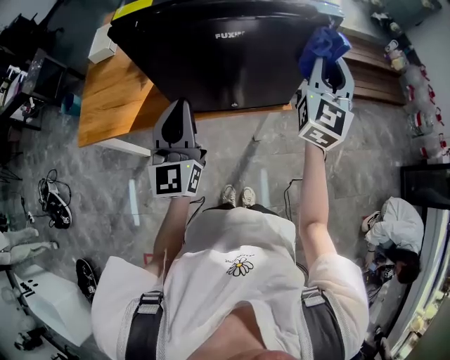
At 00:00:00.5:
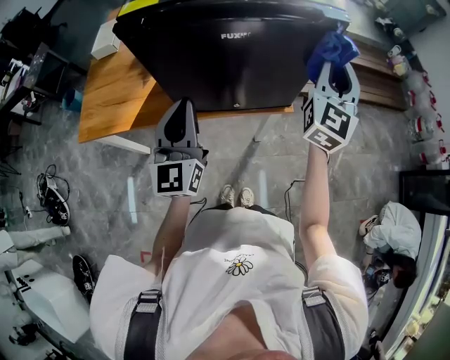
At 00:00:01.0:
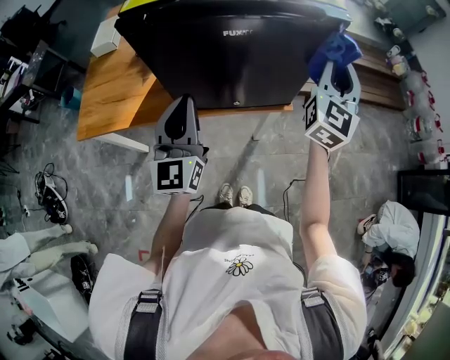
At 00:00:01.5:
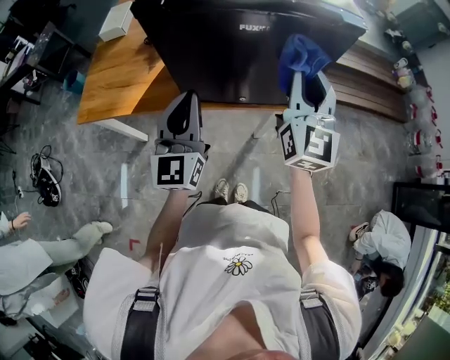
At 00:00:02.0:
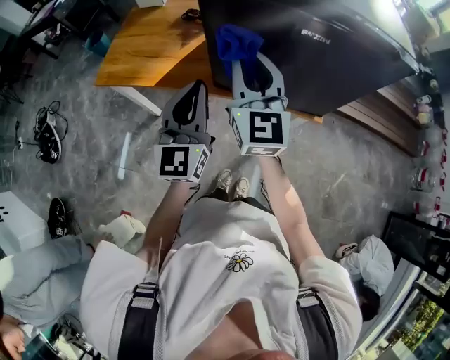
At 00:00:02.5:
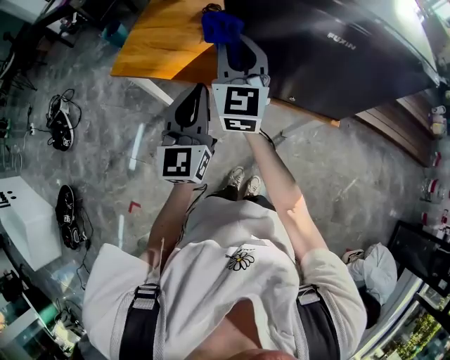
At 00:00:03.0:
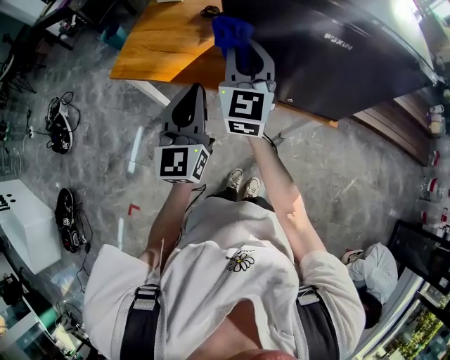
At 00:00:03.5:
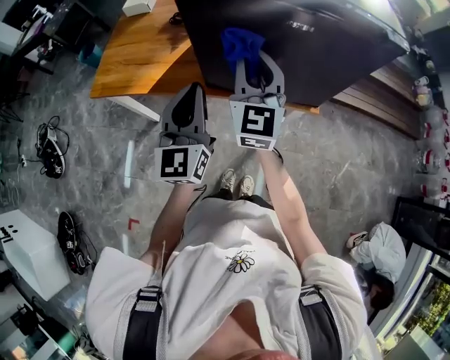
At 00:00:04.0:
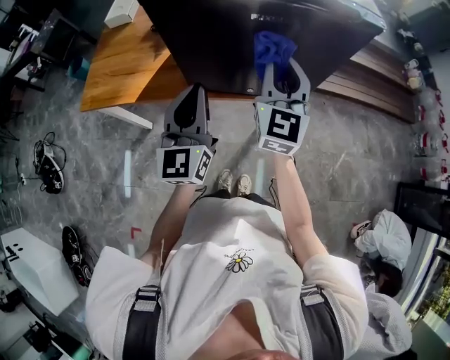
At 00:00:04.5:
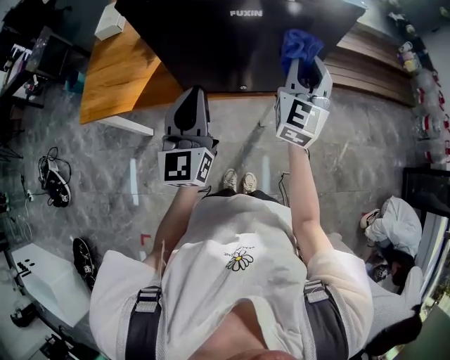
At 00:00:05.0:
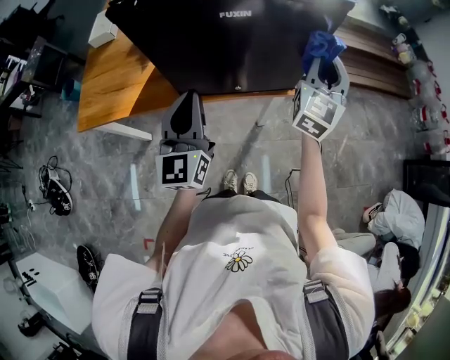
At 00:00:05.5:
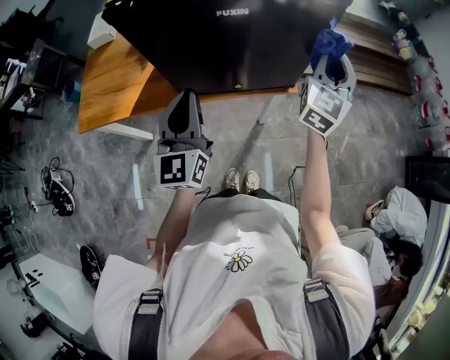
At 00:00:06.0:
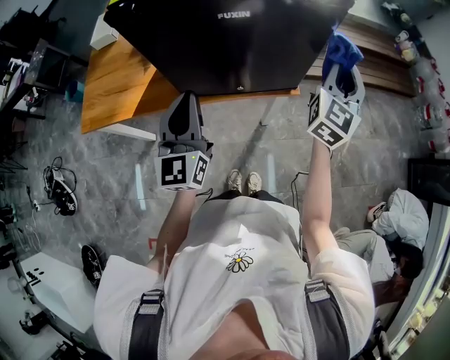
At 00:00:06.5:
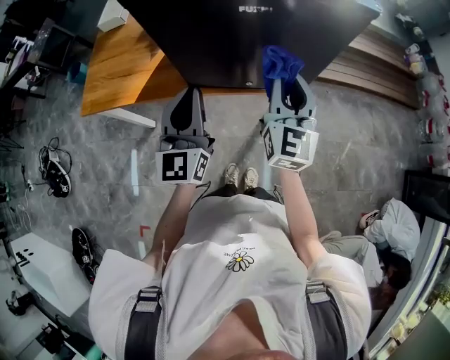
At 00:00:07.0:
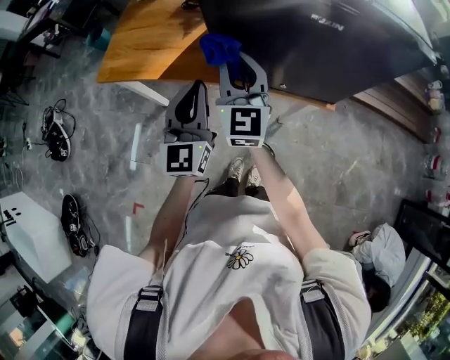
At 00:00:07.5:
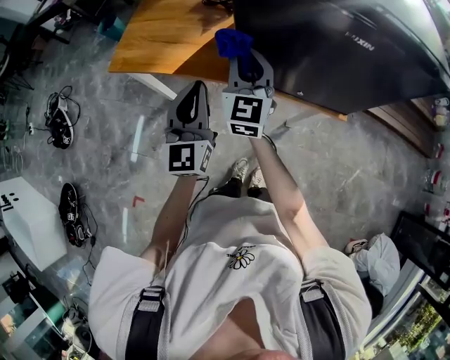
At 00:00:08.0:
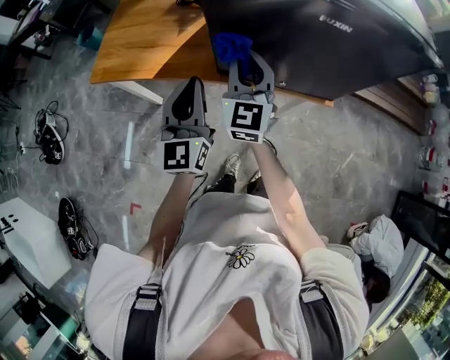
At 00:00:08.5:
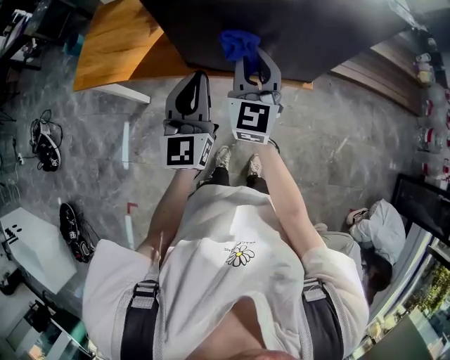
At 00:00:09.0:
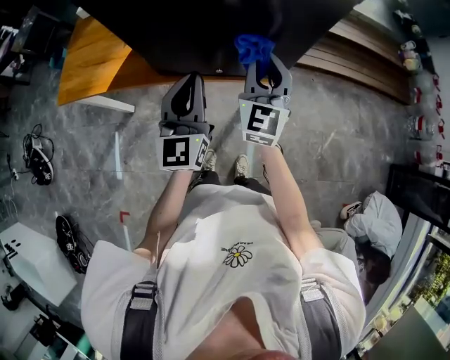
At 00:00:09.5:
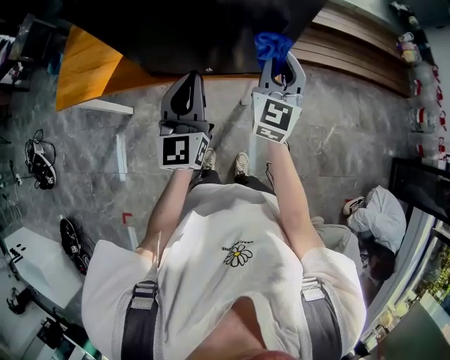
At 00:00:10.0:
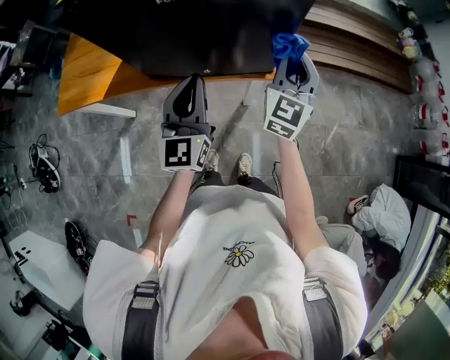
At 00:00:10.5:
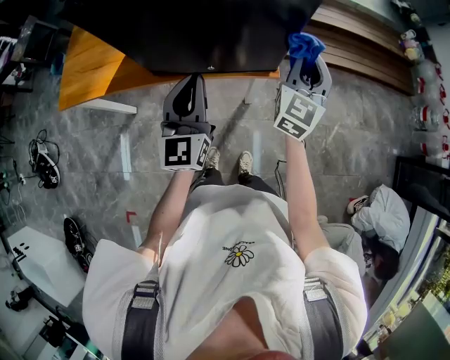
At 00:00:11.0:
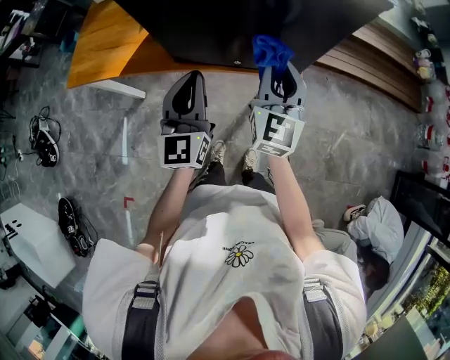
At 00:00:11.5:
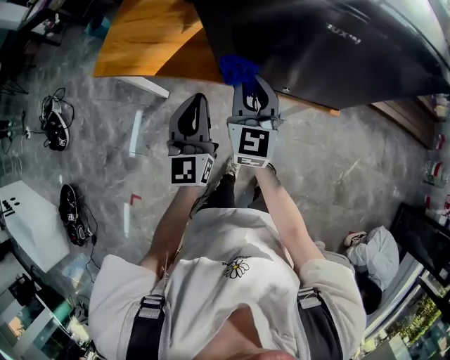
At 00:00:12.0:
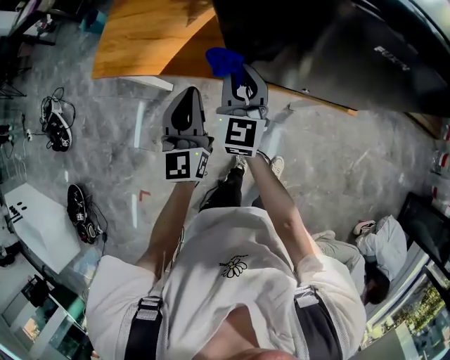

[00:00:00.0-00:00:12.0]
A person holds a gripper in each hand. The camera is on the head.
00:00:00.0 to 00:00:02.0: The left gripper changes place by about 10 cm. Meanwhile the right gripper changes place by roughly 30 cm, and rotates approximately 40 degrees.
00:00:02.0 to 00:00:04.0: The right gripper moves to the right, approximately 15 cm, and swivels some 20 degrees. Meanwhile the left gripper travels to the right by about 5 cm.
00:00:04.0 to 00:00:06.0: The right gripper shifts some 20 cm to the right, and swivels roughly 30 degrees.
00:00:06.0 to 00:00:08.0: The right gripper ends up approximately 40 cm from where it was, and rotates roughly 40 degrees. The left gripper shifts by about 10 cm.
00:00:08.0 to 00:00:10.0: The right gripper goes about 35 cm to the right, and changes its angle by some 30 degrees. Meanwhile the left gripper heads to the right, covering approximately 25 cm.
00:00:10.0 to 00:00:12.0: The grippers both shift to the left by some 35 cm. The right gripper swivels some 30 degrees.

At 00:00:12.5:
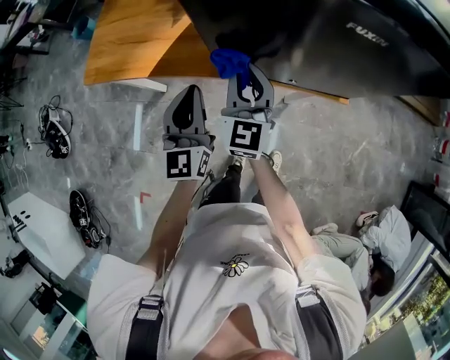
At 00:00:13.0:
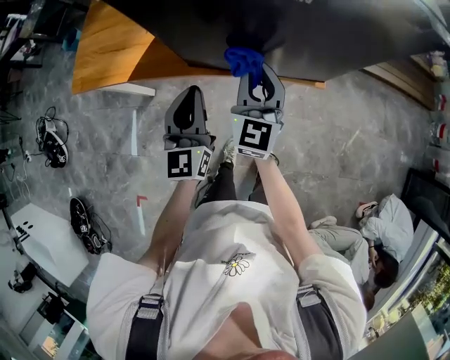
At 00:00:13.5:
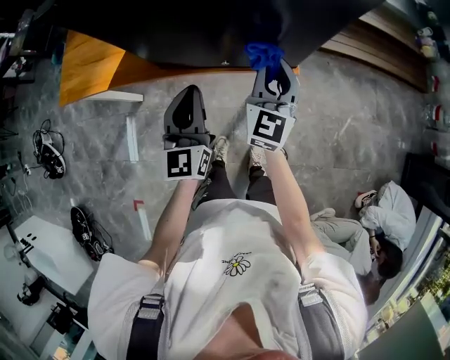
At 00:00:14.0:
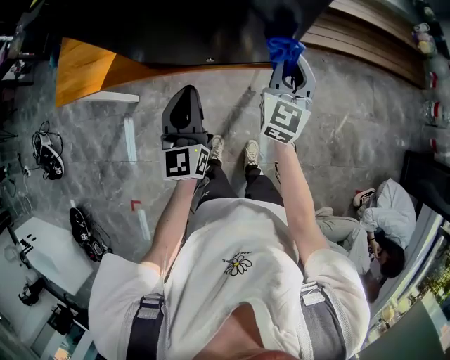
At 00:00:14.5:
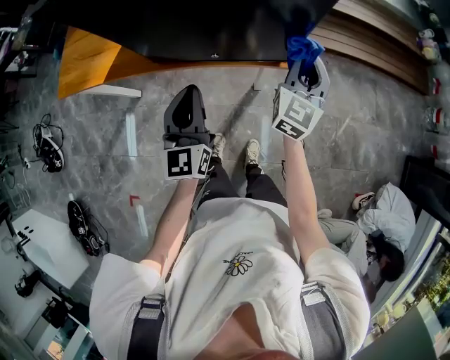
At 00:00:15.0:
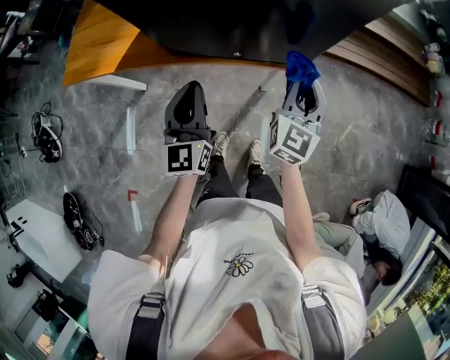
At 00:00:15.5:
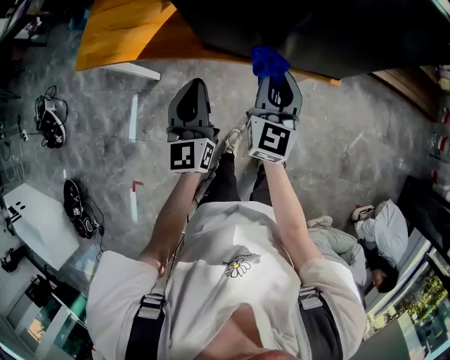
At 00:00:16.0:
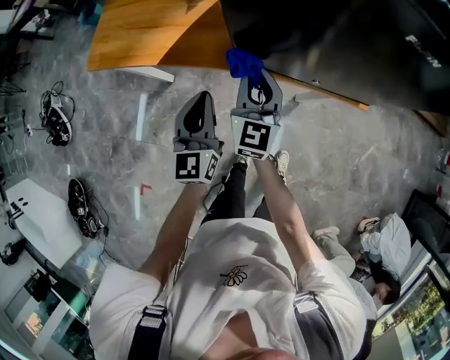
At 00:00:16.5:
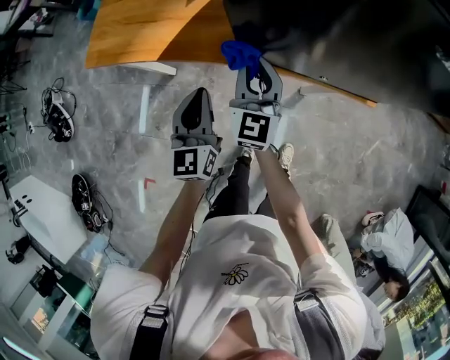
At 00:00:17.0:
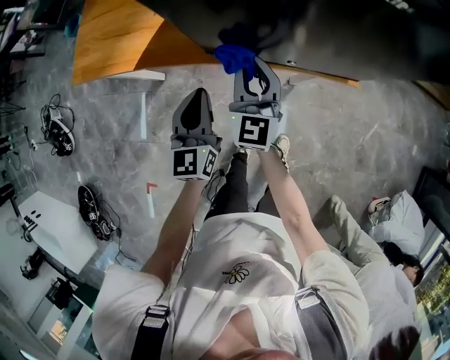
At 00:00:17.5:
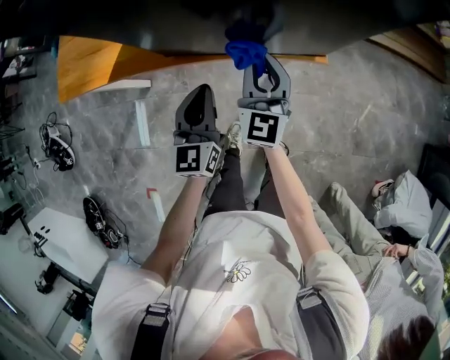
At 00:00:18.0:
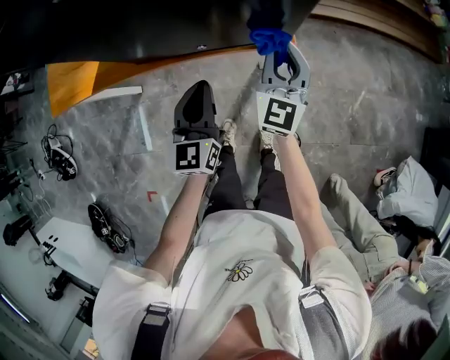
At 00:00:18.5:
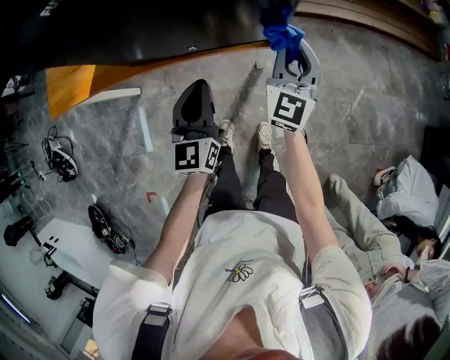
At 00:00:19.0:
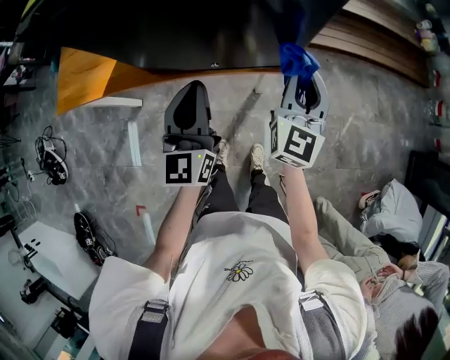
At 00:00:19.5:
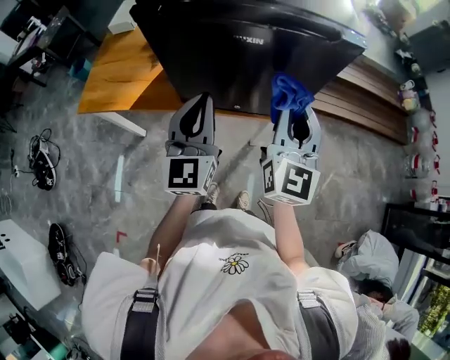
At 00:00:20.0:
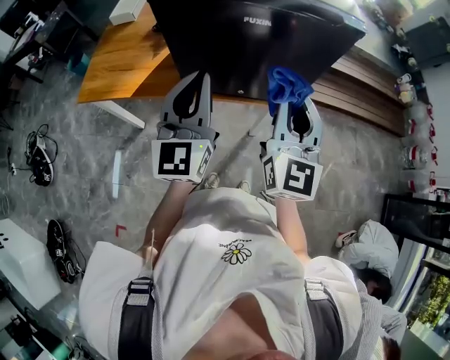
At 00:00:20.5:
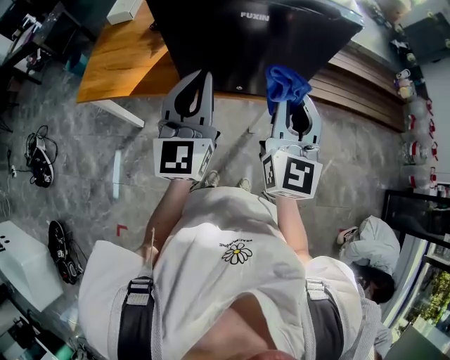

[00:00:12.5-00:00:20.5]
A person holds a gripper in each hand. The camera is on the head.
00:00:12.5 to 00:00:14.5: The left gripper shifts approximately 20 cm to the right; the right gripper travels to the right by about 35 cm, and changes its angle by some 30 degrees.
00:00:14.5 to 00:00:16.5: The right gripper shifts about 40 cm to the left, and turns by about 30 degrees, while the left gripper goes approximately 25 cm to the left.
00:00:16.5 to 00:00:18.5: Both grippers move to the right, about 35 cm. The right gripper swivels some 20 degrees.
00:00:18.5 to 00:00:20.5: The left gripper moves upward, roughly 30 cm, and changes its angle by approximately 20 degrees. The right gripper moves upward, backward and to the left, approximately 35 cm.

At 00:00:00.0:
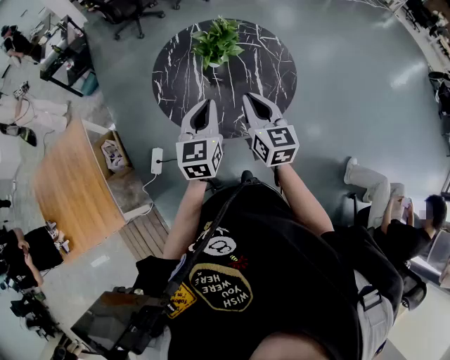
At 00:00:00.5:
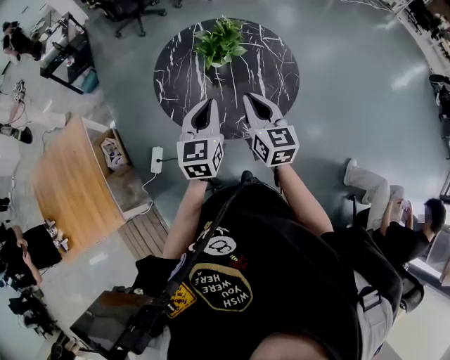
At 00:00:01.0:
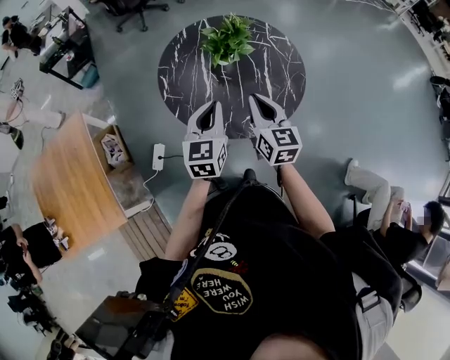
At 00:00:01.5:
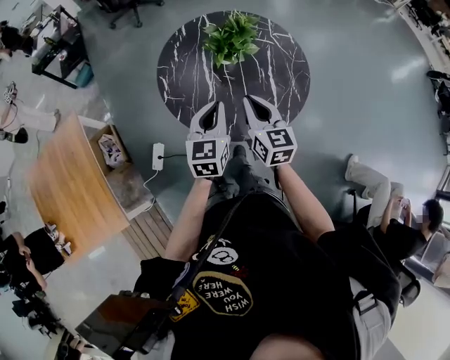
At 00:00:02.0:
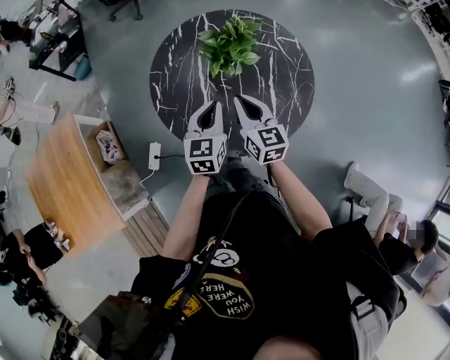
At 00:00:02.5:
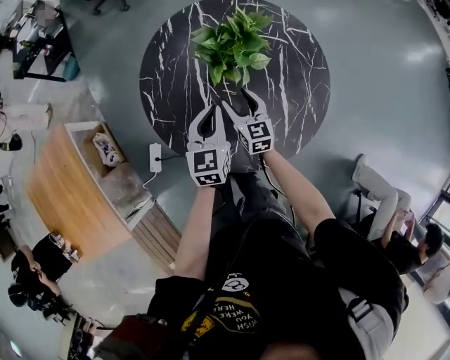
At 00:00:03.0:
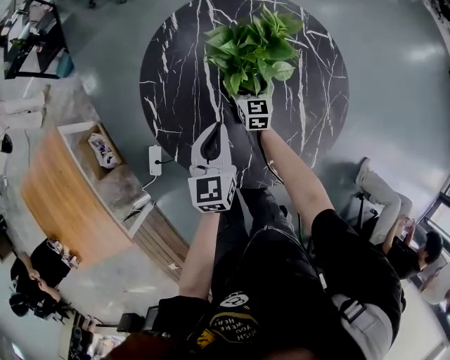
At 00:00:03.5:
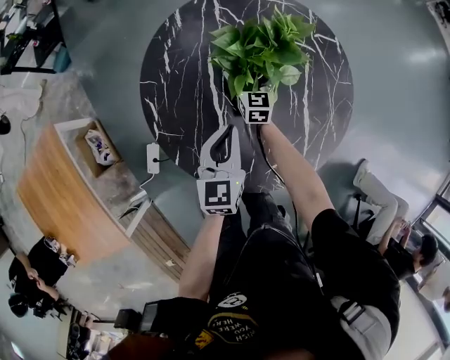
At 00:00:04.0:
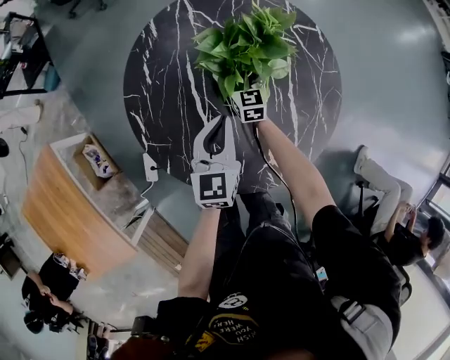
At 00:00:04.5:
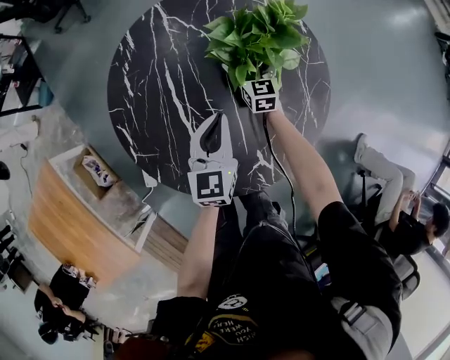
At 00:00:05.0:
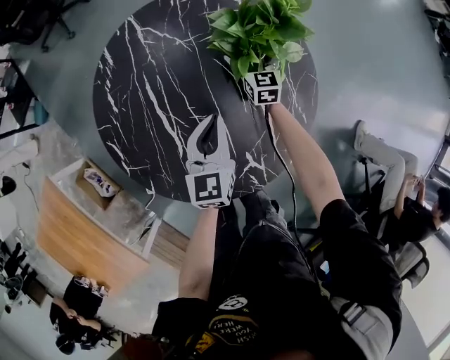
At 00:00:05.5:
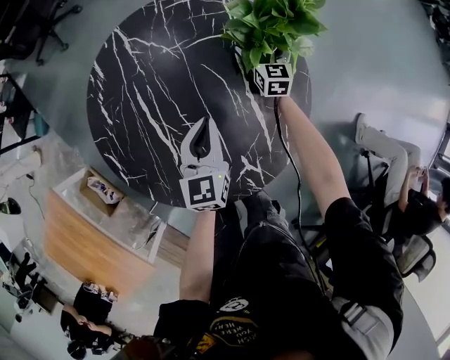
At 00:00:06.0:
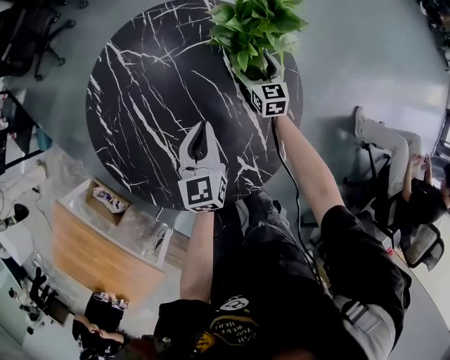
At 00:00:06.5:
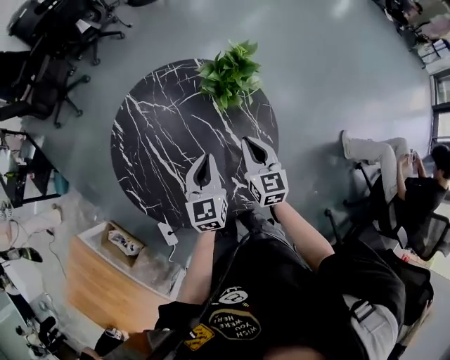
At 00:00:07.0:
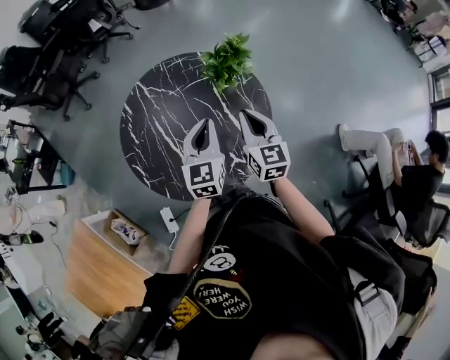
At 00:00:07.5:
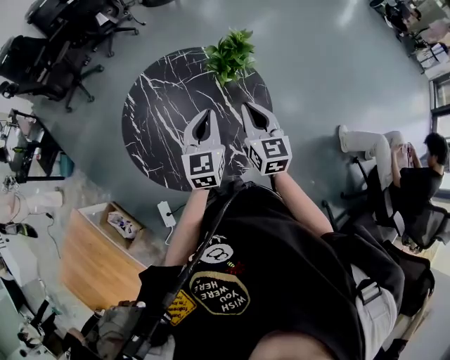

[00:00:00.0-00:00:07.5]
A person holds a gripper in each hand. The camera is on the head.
00:00:00.0 to 00:00:02.0: The two grippers go some 20 cm forward and downward.
00:00:02.0 to 00:00:04.0: The left gripper heads forward and downward, covering roughly 20 cm. Meanwhile the right gripper travels downward and forward by some 40 cm, and opens.
00:00:04.0 to 00:00:05.5: The left gripper moves to the right, some 10 cm; the right gripper travels to the right by roughly 25 cm.
00:00:05.5 to 00:00:07.5: The right gripper shifts roughly 50 cm upward and backward, and closes up. Meanwhile the left gripper heads upward and backward, covering about 25 cm.
